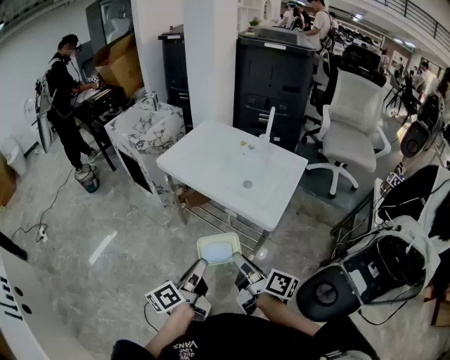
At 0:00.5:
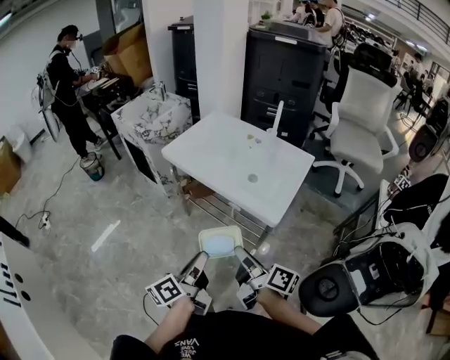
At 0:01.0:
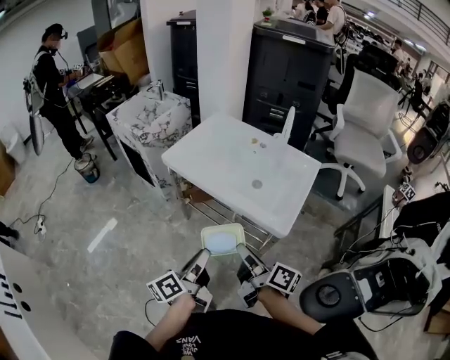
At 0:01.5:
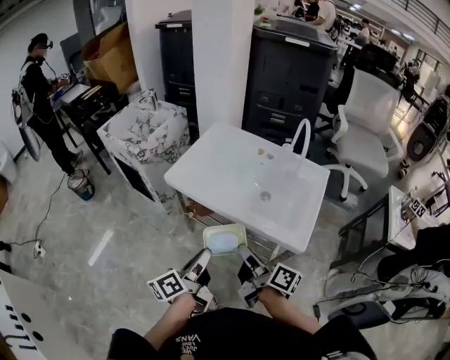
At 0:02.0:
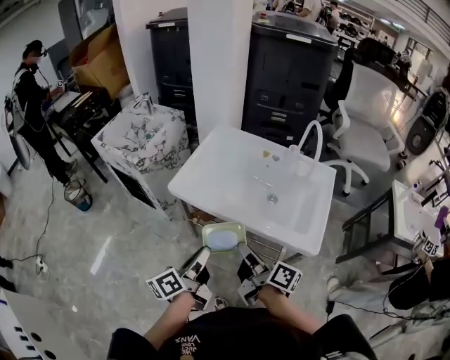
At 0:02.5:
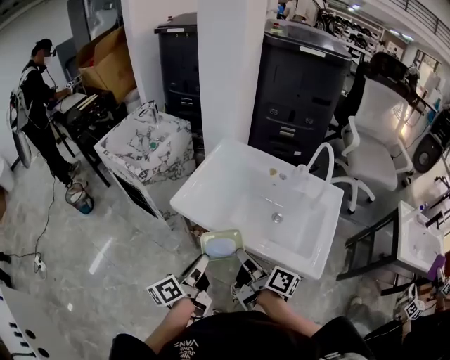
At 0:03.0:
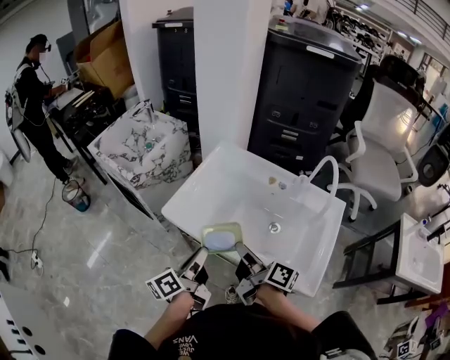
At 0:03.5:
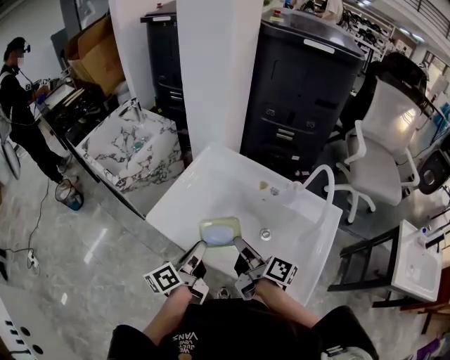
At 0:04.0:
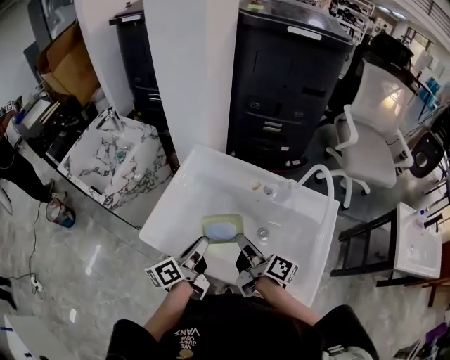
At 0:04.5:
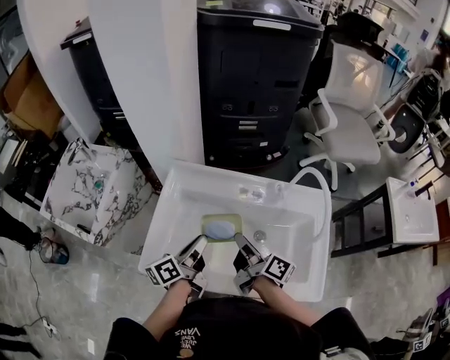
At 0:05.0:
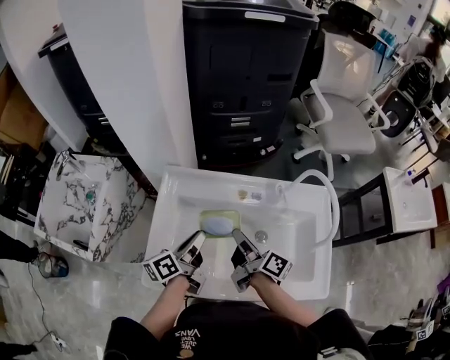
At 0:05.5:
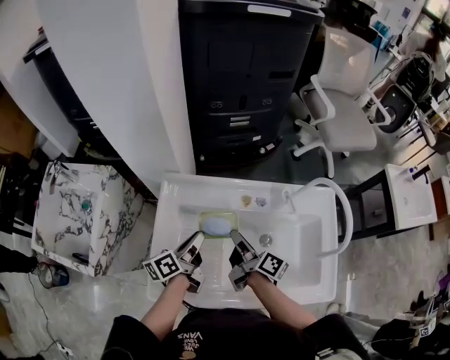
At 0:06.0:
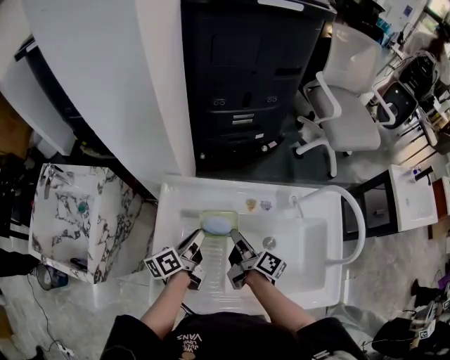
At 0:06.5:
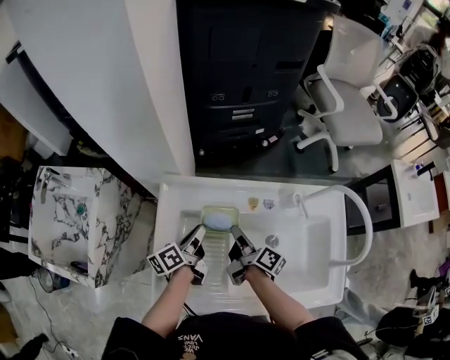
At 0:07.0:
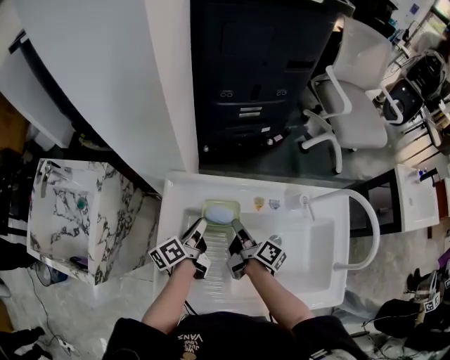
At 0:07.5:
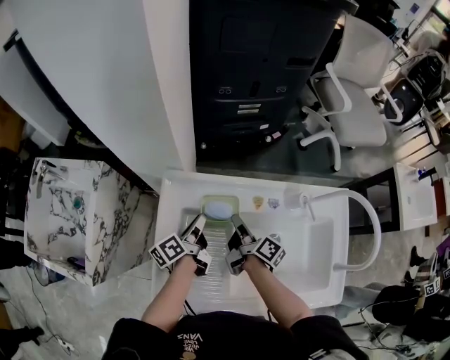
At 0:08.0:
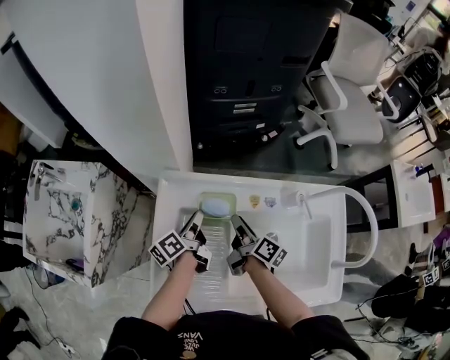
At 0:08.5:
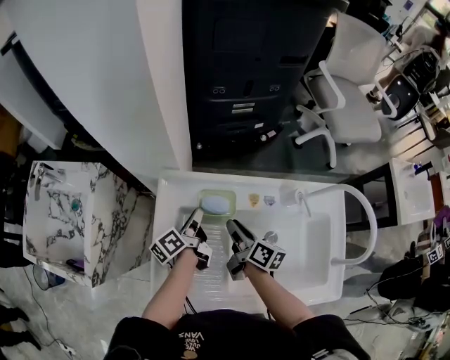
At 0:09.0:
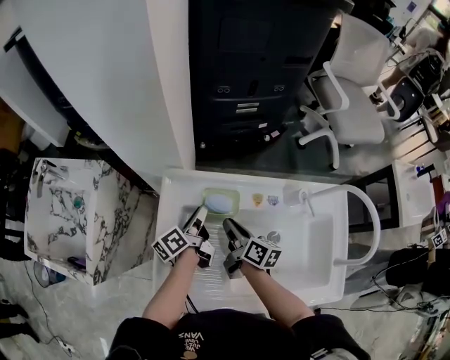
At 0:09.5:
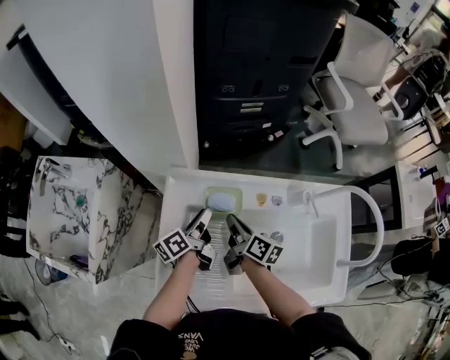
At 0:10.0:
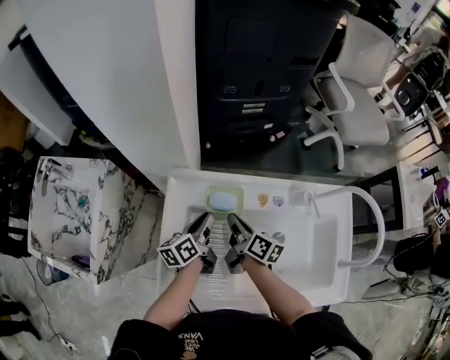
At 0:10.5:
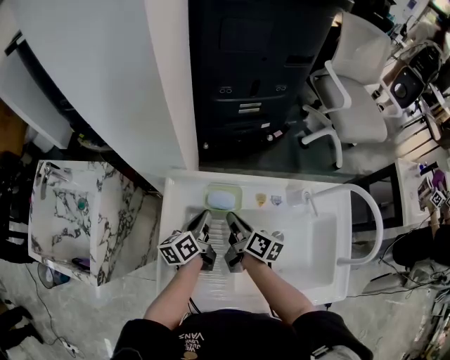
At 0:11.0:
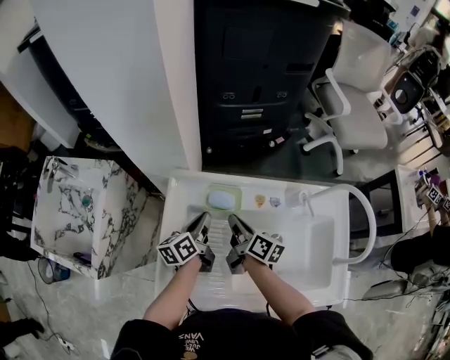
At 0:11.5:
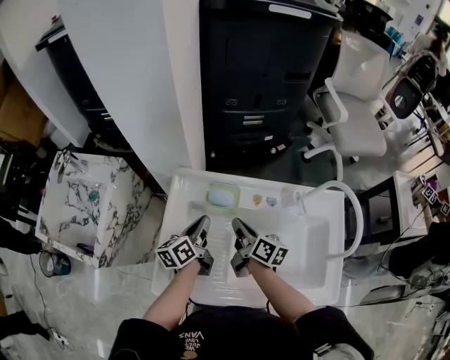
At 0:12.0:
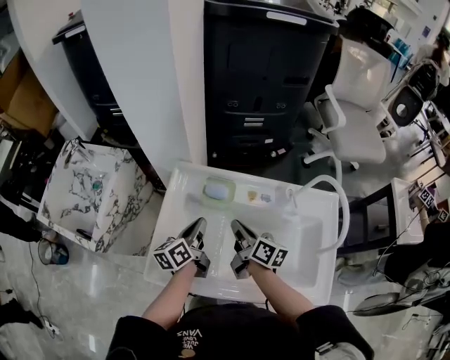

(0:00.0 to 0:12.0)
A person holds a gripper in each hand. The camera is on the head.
0:00.0 - 0:02.0: Both grippers travel together forward and to the left, roughly 30 cm.
0:02.0 - 0:04.0: The two grippers go approximately 25 cm forward.
0:04.0 - 0:06.0: The grippers both shift forward and downward by about 20 cm. The right gripper turns by about 30 degrees, while the left gripper changes its angle by approximately 20 degrees.
0:06.0 - 0:08.0: The left gripper heads forward, covering roughly 5 cm. The right gripper moves some 5 cm.
0:08.0 - 0:10.0: The right gripper closes up.
0:10.0 - 0:12.0: The grippers both shift backward and upward by approximately 10 cm.

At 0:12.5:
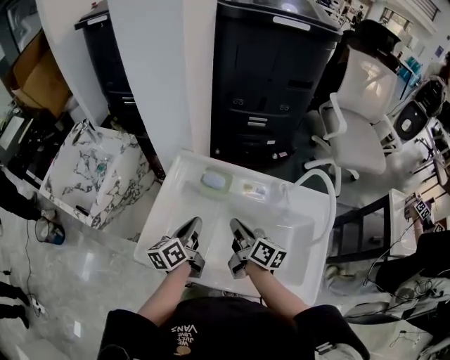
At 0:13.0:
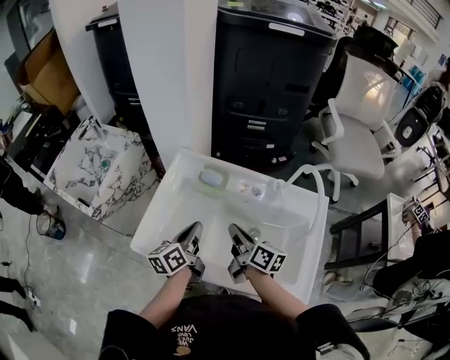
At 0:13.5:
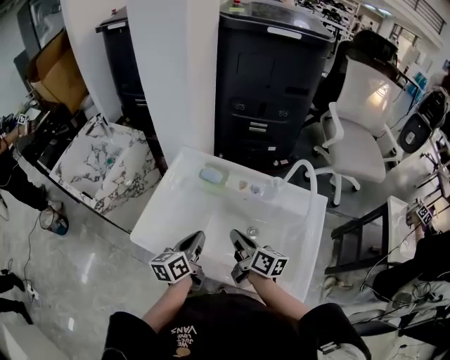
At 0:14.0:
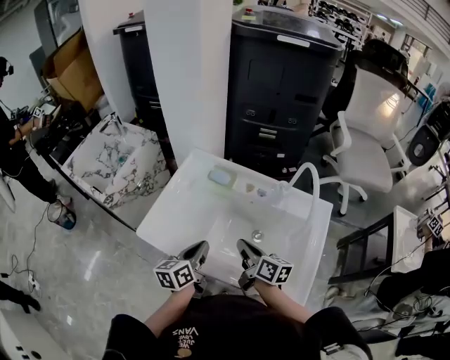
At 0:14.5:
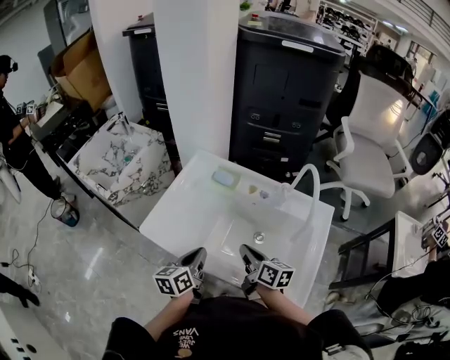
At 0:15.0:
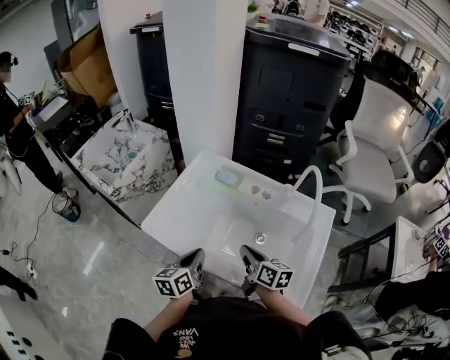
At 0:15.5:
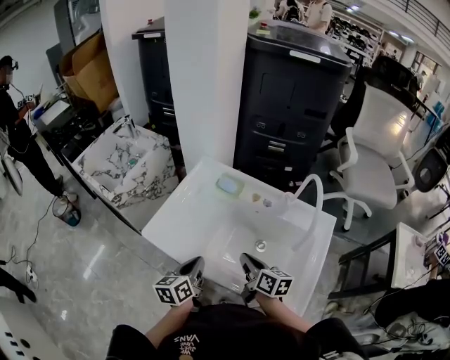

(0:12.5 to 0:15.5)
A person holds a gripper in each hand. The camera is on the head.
0:12.5 - 0:14.0: Both grippers move backward, about 10 cm.
0:14.0 - 0:15.5: The left gripper changes place by about 5 cm.

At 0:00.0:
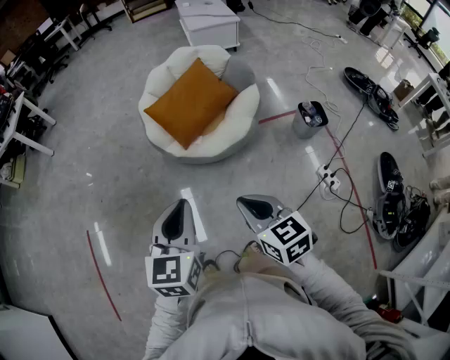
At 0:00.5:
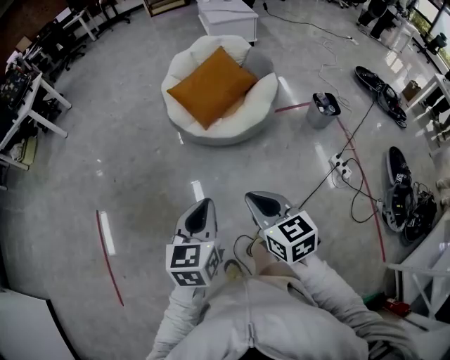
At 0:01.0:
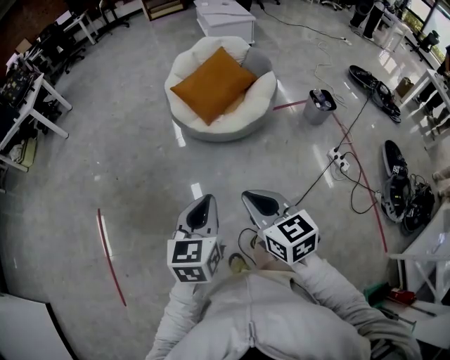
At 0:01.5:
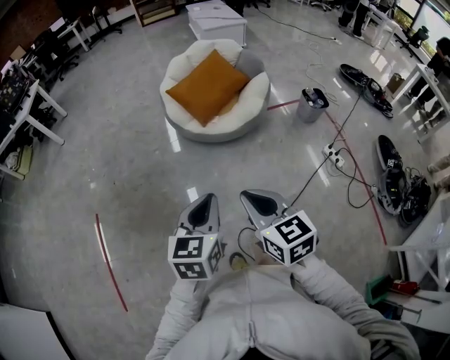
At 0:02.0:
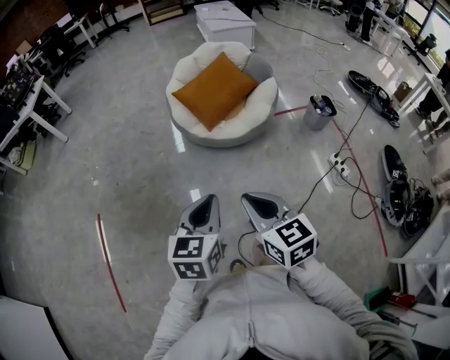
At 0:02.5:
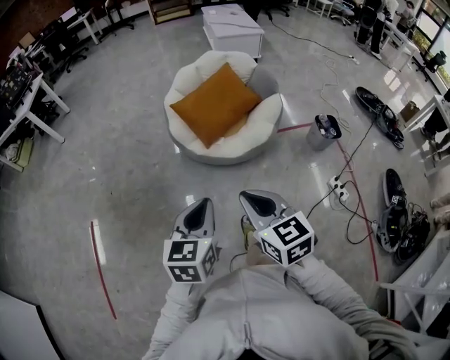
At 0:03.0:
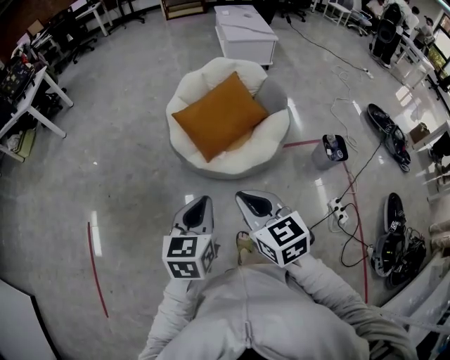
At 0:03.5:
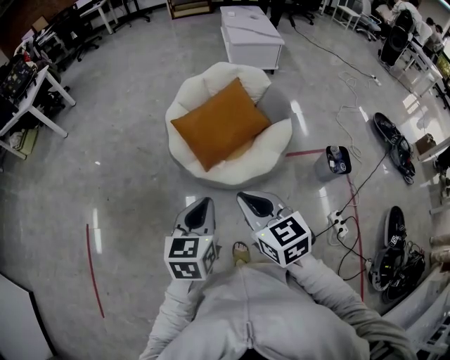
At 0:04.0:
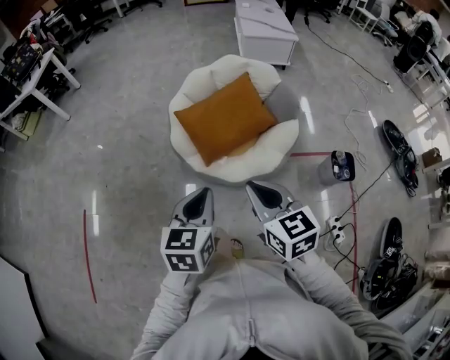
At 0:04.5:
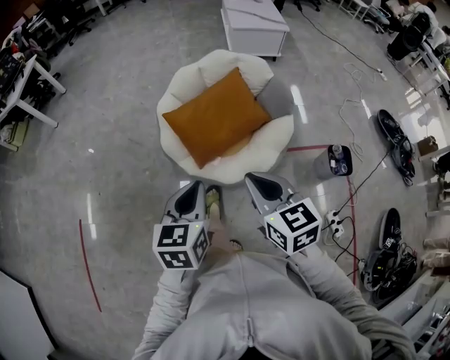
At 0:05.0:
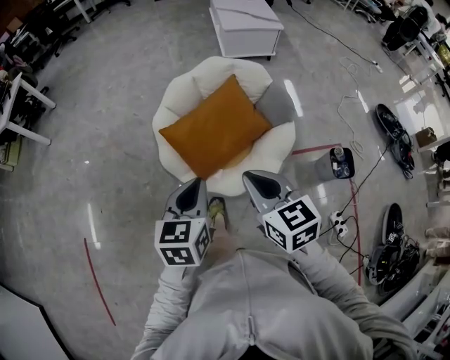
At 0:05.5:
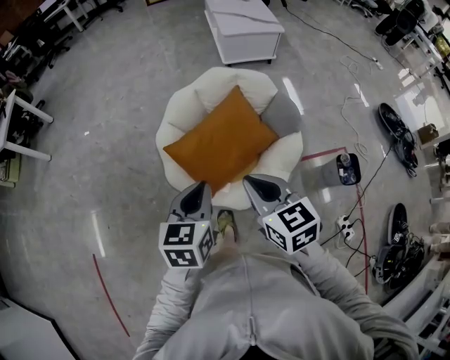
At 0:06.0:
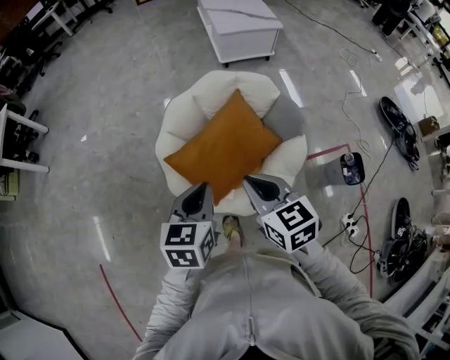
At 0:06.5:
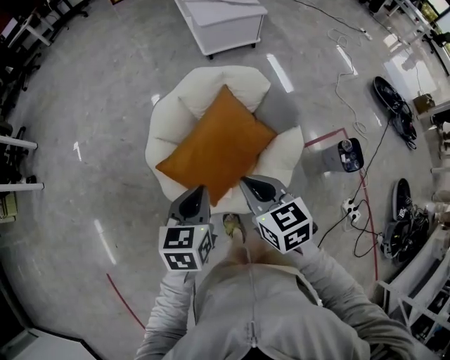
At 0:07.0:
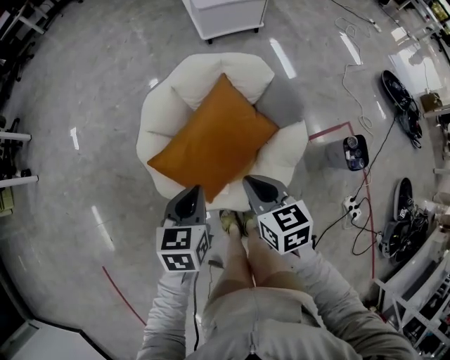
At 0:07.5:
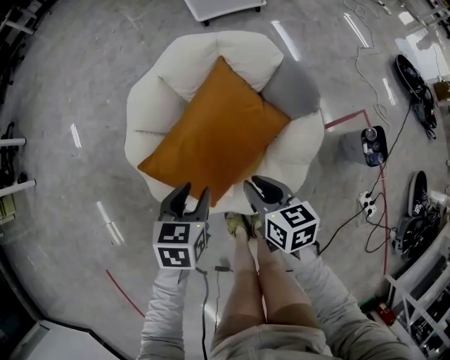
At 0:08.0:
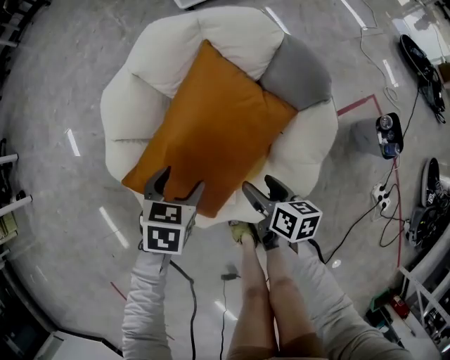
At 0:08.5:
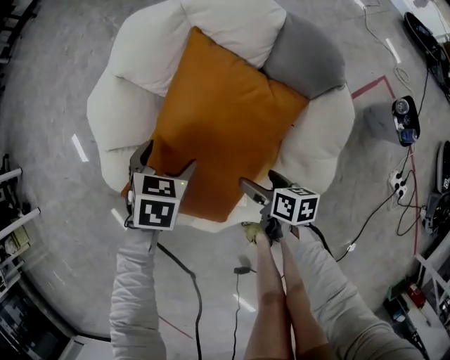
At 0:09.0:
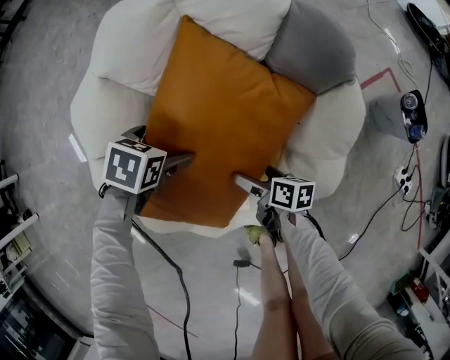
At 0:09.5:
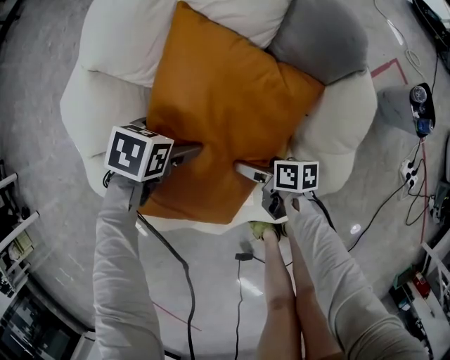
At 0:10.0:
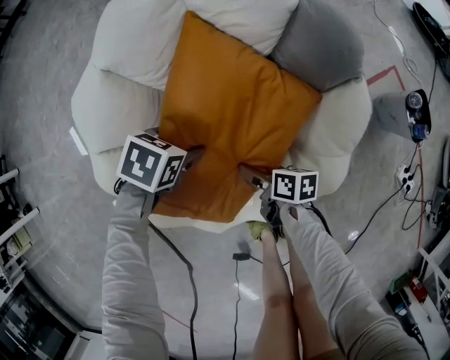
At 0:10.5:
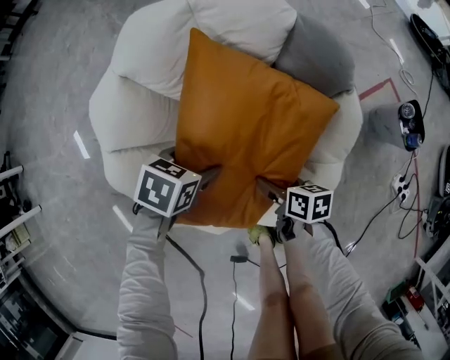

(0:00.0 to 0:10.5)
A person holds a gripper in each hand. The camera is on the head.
0:00.0 - 0:02.0: The right gripper shifts about 25 cm to the left and backward, while the left gripper is displaced backward and to the left by approximately 25 cm.
0:02.0 - 0:04.0: The two grippers travel together, forward and to the right, about 50 cm.
0:04.0 - 0:06.5: The pair of grippers is taken forward, approximately 40 cm.
0:06.5 - 0:08.5: The left gripper is displaced downward and forward by roughly 50 cm, changes its angle by about 40 degrees, and opens. Meanwhile the right gripper heads downward, covering roughly 50 cm, rotates around the line of its fingers by about 50 degrees, clockwise from behind, and opens its fingers.
0:08.5 - 0:10.5: The left gripper travels downward and back again, approximately 10 cm each way, and turns by approximately 30 degrees, while the right gripper goes downward and returns, approximately 10 cm each way.

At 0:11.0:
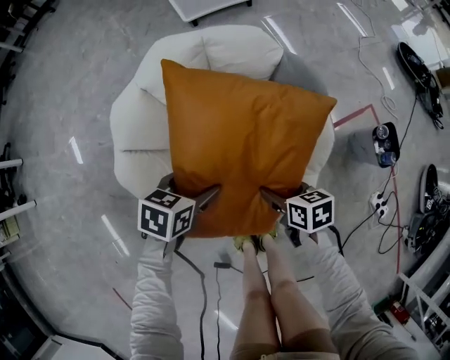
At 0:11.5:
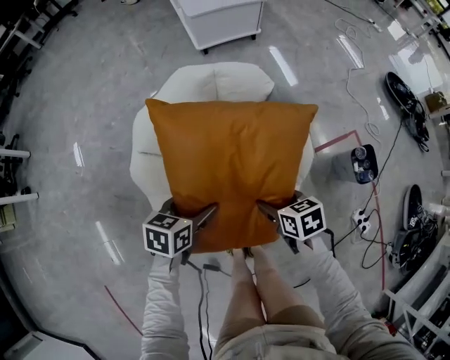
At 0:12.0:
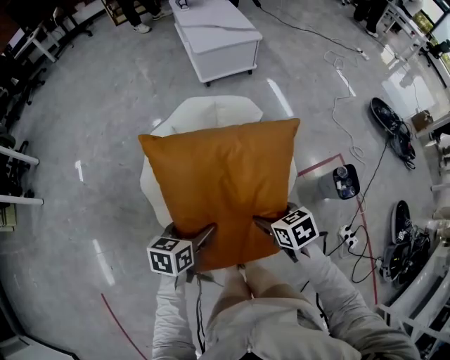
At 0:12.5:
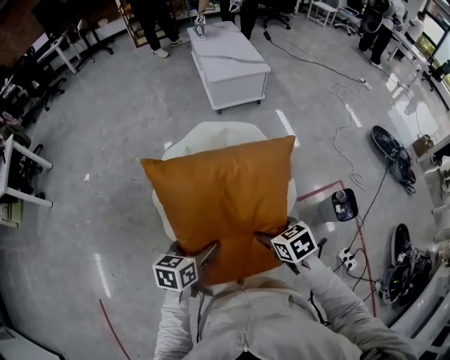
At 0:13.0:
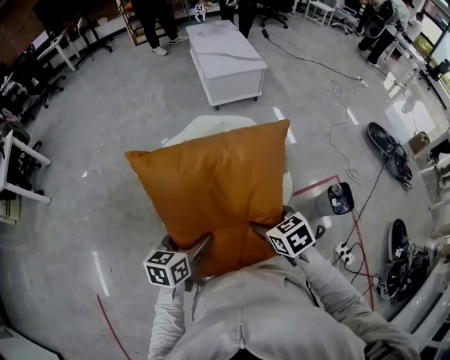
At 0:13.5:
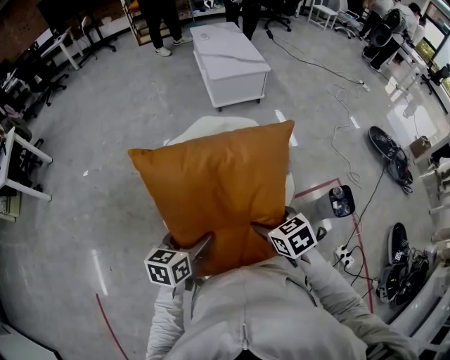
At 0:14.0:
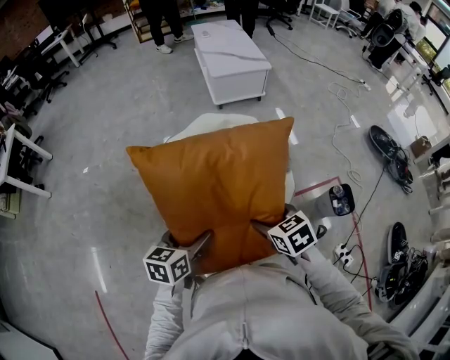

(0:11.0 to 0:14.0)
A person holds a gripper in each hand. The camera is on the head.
0:11.0 - 0:12.5: The right gripper goes approximately 35 cm upward, and changes its angle by approximately 30 degrees. The left gripper heads upward and backward, covering some 35 cm, and swivels approximately 30 degrees.
0:12.5 - 0:14.0: The right gripper shifts by about 5 cm. Meanwhile the left gripper shifts by approximately 5 cm.
